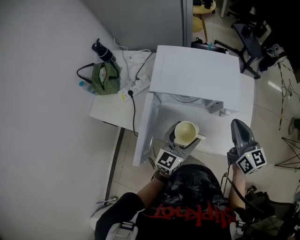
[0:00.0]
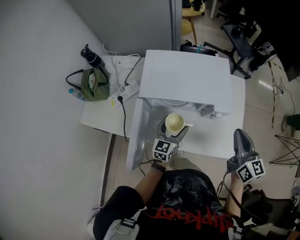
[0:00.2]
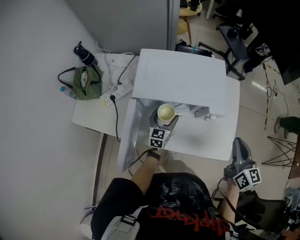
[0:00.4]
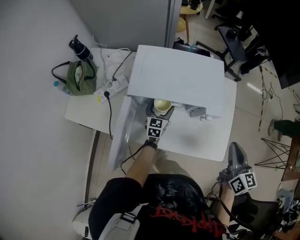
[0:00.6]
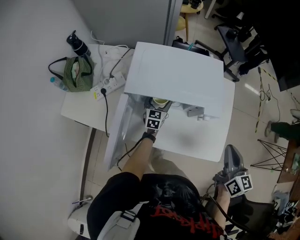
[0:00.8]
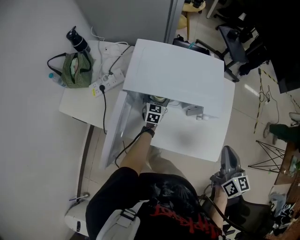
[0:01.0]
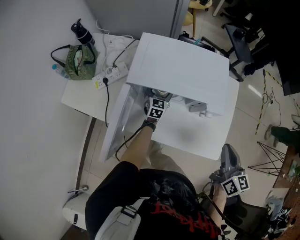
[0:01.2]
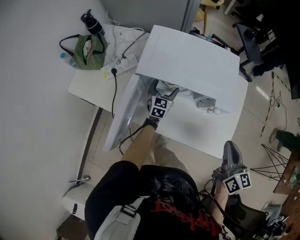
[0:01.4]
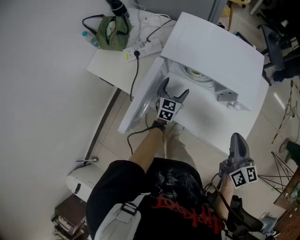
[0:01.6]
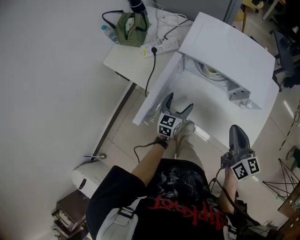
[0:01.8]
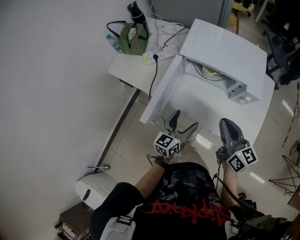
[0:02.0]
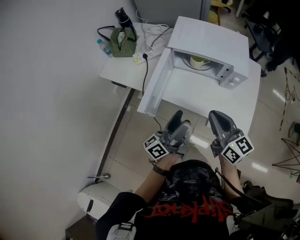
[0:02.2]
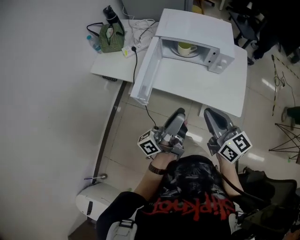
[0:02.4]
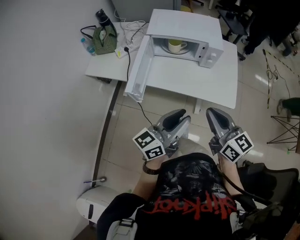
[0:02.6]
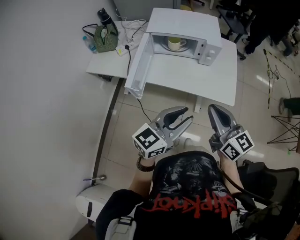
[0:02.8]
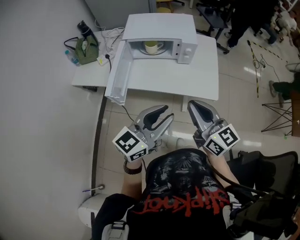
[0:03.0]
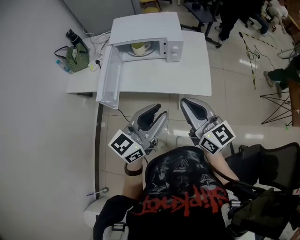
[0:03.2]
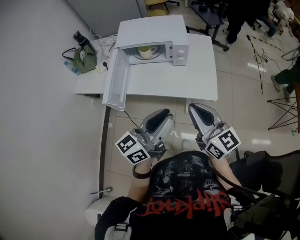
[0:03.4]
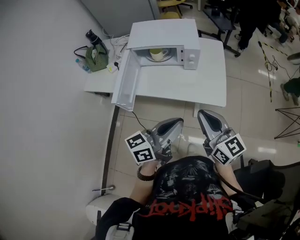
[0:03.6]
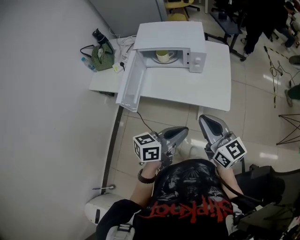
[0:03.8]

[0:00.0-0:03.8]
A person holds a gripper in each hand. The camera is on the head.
0:00.0 to 0:01.2: The right gripper shifts approximately 10 cm to the right and backward; the left gripper shifts some 30 cm forward and downward, and turns by some 20 degrees.
0:01.2 to 0:02.6: The left gripper shifts about 60 cm backward and upward, points its fingers about 40 degrees further upward, and closes up, while the right gripper shifts some 30 cm backward and to the left, and rotates some 20 degrees.
0:02.6 to 0:03.8: Both grippers move to the right, about 10 cm. The left gripper changes its angle by about 30 degrees.

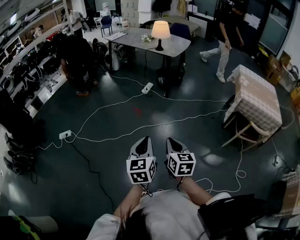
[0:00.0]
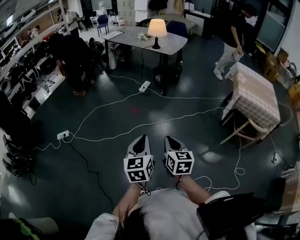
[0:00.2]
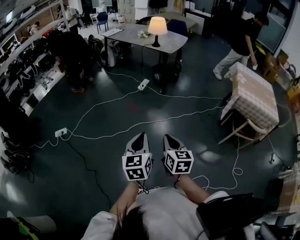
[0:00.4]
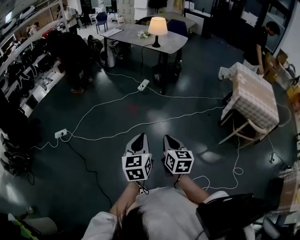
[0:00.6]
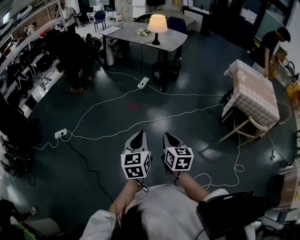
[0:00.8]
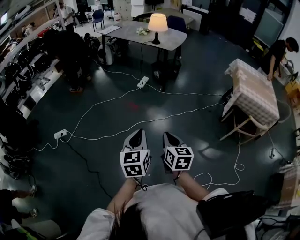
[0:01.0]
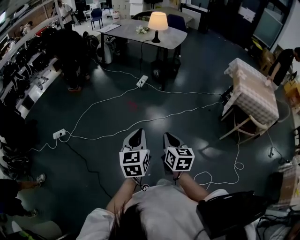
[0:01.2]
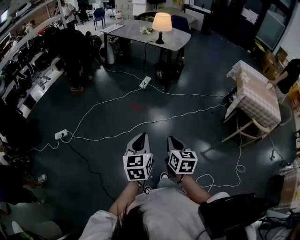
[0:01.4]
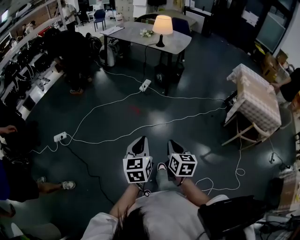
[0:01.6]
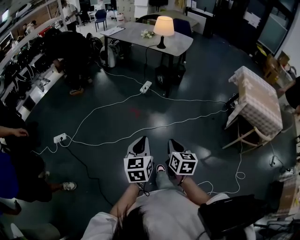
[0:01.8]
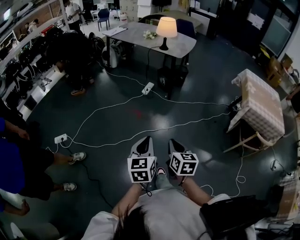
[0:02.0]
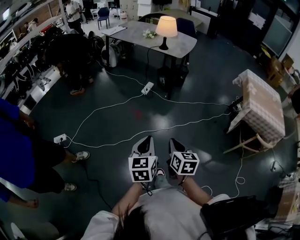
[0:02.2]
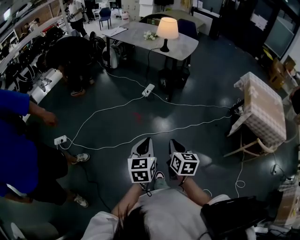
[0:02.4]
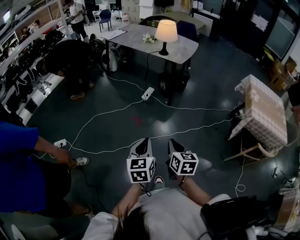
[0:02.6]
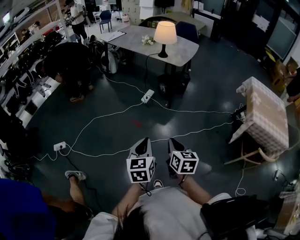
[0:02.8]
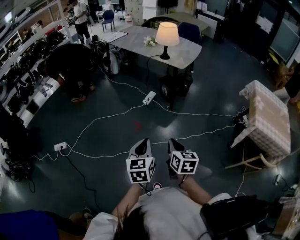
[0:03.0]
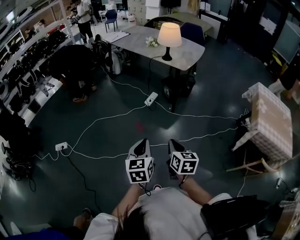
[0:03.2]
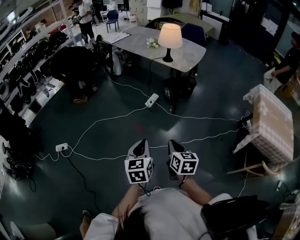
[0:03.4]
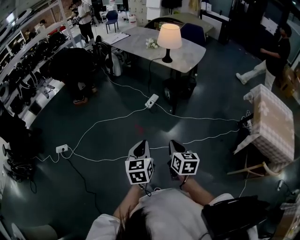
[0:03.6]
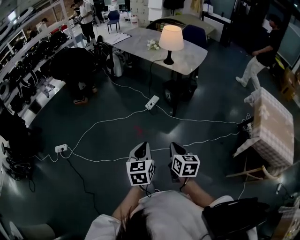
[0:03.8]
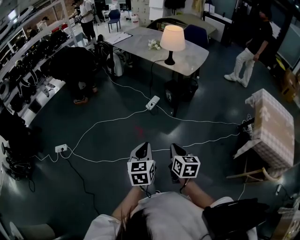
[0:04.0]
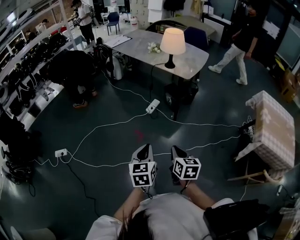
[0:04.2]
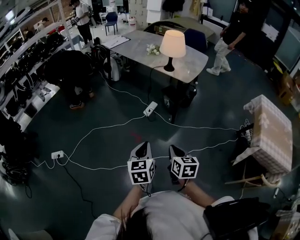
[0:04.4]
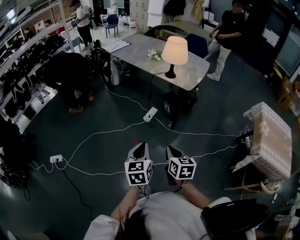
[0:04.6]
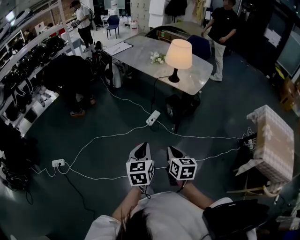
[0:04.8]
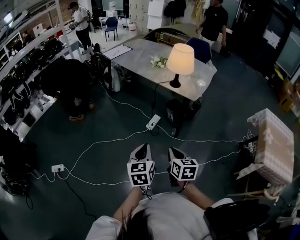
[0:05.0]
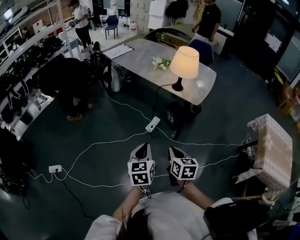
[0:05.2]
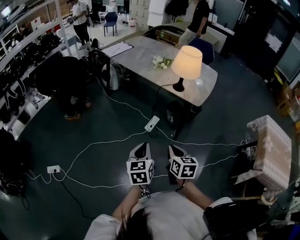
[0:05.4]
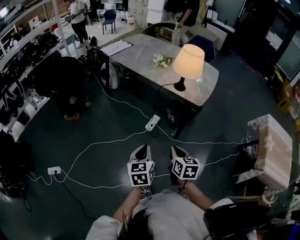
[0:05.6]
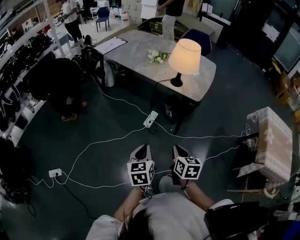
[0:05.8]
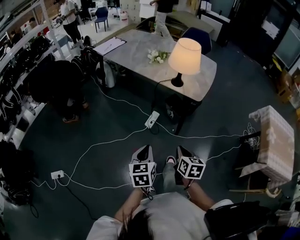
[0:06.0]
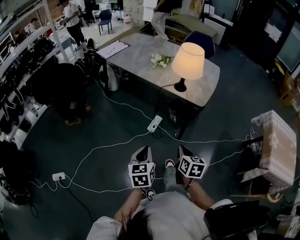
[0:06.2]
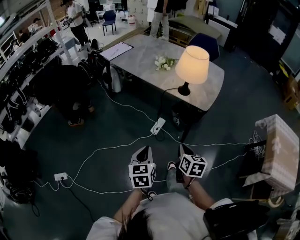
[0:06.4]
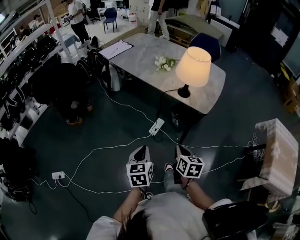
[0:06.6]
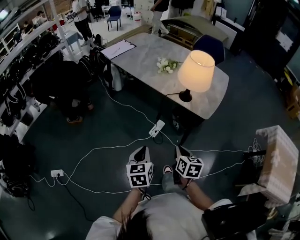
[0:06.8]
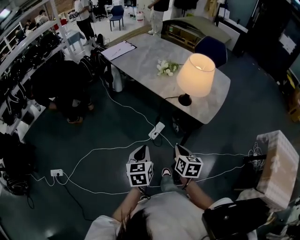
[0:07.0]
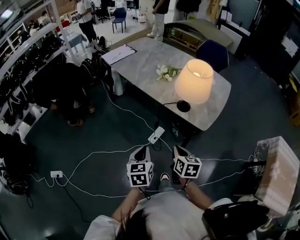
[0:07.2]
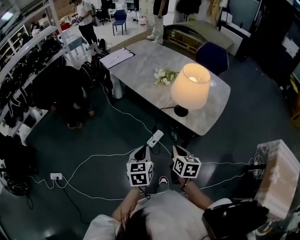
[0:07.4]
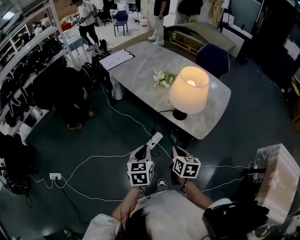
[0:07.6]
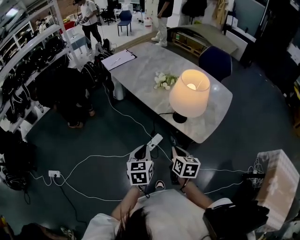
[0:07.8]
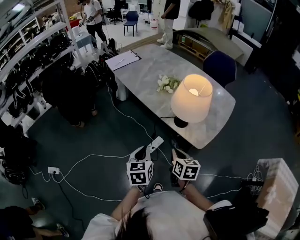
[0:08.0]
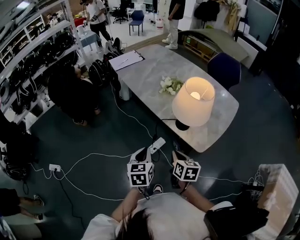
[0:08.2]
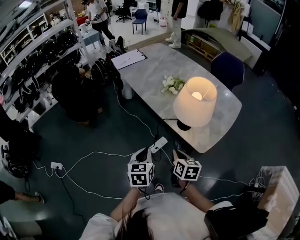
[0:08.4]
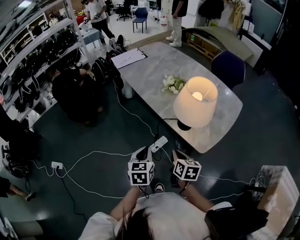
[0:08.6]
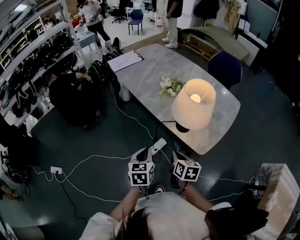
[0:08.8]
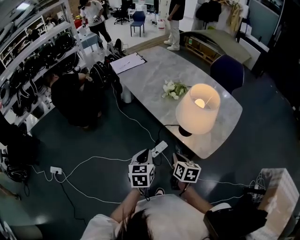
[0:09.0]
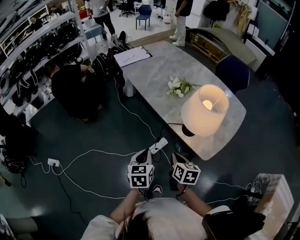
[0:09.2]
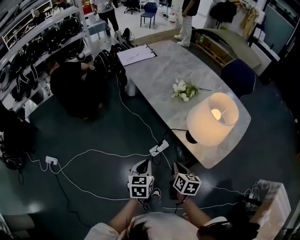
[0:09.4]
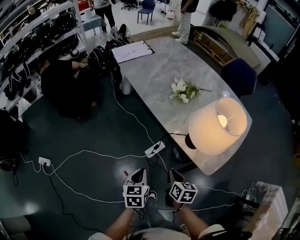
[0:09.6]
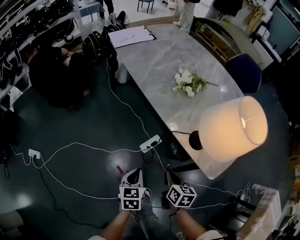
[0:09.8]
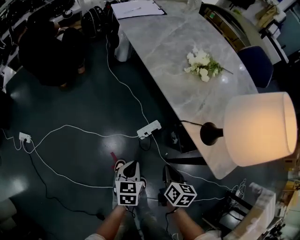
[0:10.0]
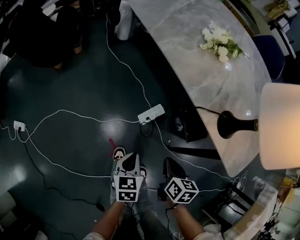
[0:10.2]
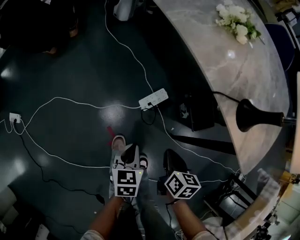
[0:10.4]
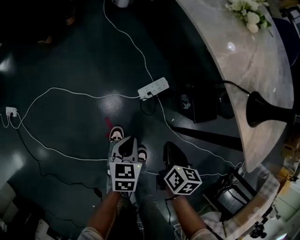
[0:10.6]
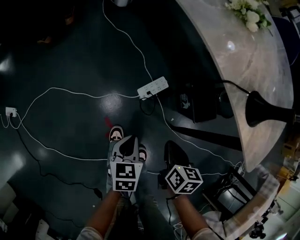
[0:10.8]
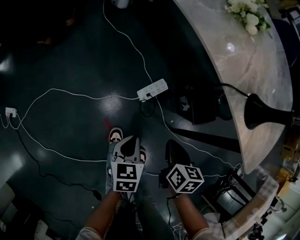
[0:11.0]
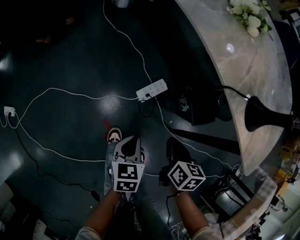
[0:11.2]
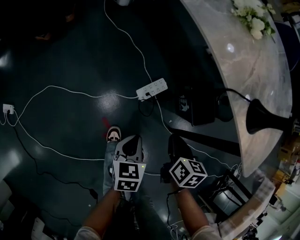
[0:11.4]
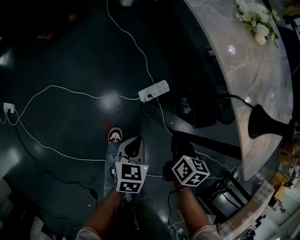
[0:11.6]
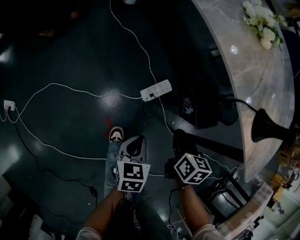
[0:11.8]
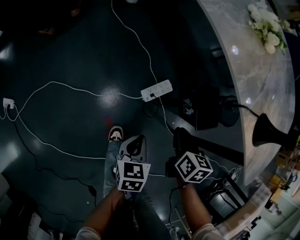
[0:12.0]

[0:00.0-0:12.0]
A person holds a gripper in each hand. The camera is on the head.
0:00.0 to 0:01.6: The left gripper is displaced to the left and forward by approximately 10 cm; the right gripper goes some 10 cm forward and to the left.
0:01.6 to 0:03.0: The grippers both shift forward by approximately 25 cm.
0:03.0 to 0:04.4: Both grippers move forward, approximately 15 cm.
0:04.4 to 0:06.0: Both grippers move forward, some 25 cm.
0:06.0 to 0:07.6: Both grippers travel together forward, roughly 25 cm.
0:07.6 to 0:09.0: Both grippers travel together forward, approximately 5 cm.
0:09.0 to 0:10.4: Both grippers move downward, roughly 35 cm.
0:10.4 to 0:12.0: The left gripper changes place by some 5 cm. The right gripper moves forward, roughly 10 cm.

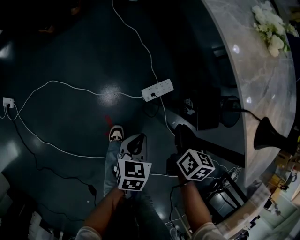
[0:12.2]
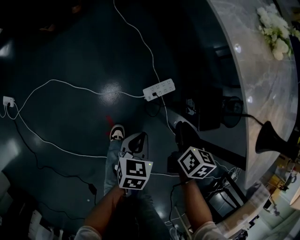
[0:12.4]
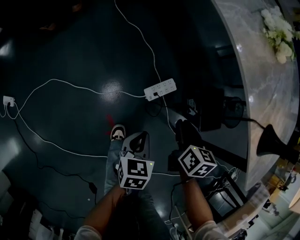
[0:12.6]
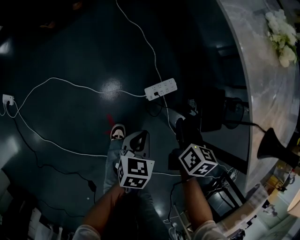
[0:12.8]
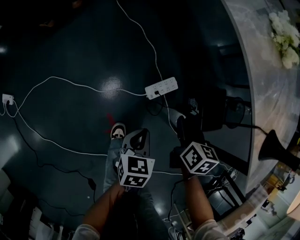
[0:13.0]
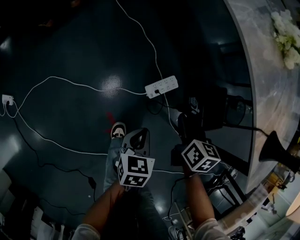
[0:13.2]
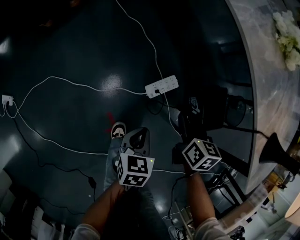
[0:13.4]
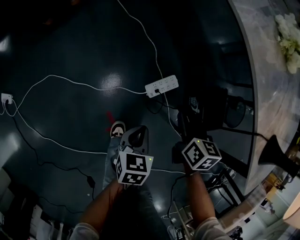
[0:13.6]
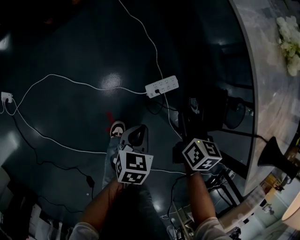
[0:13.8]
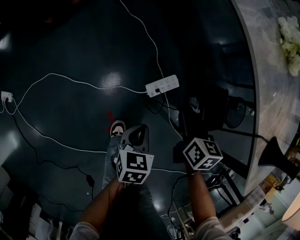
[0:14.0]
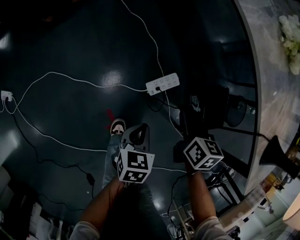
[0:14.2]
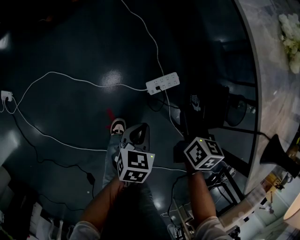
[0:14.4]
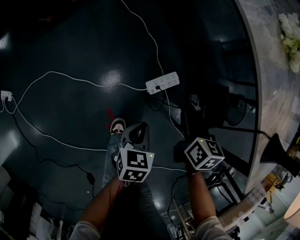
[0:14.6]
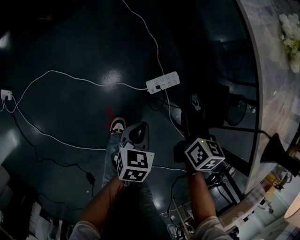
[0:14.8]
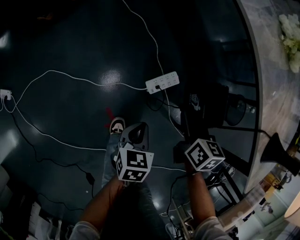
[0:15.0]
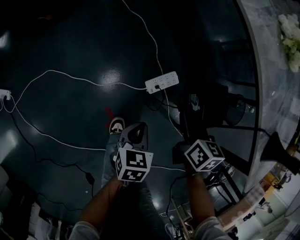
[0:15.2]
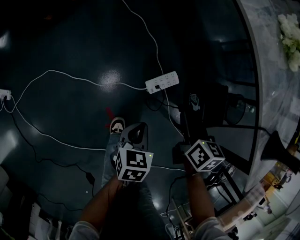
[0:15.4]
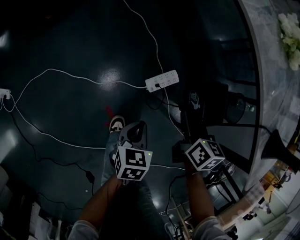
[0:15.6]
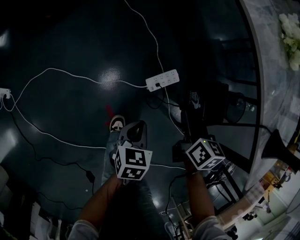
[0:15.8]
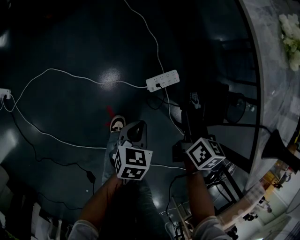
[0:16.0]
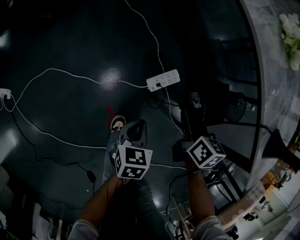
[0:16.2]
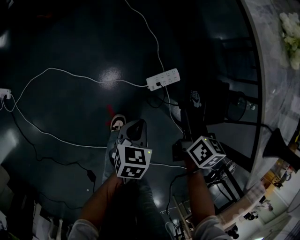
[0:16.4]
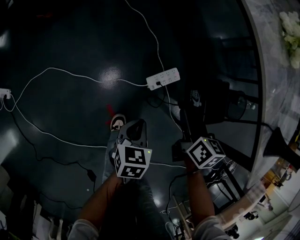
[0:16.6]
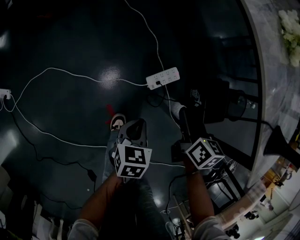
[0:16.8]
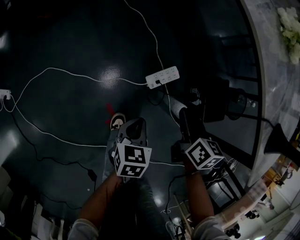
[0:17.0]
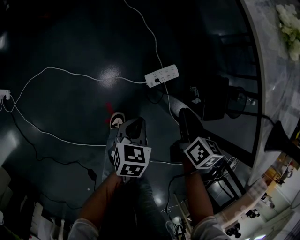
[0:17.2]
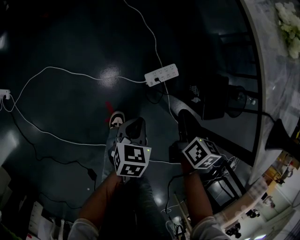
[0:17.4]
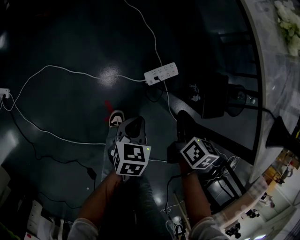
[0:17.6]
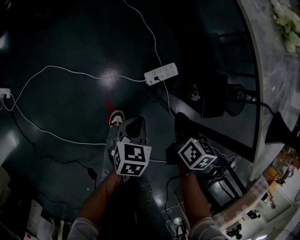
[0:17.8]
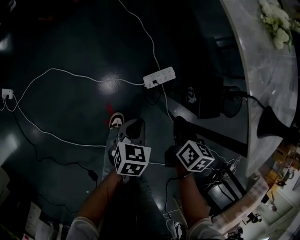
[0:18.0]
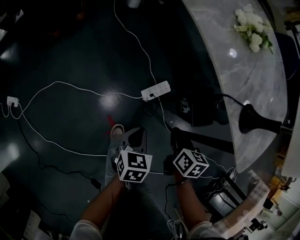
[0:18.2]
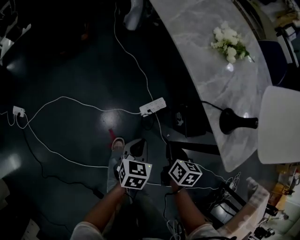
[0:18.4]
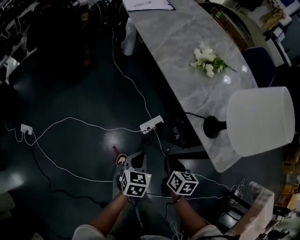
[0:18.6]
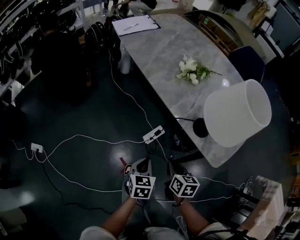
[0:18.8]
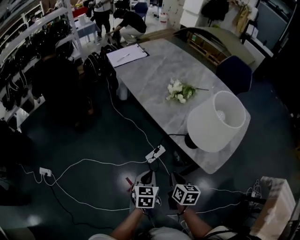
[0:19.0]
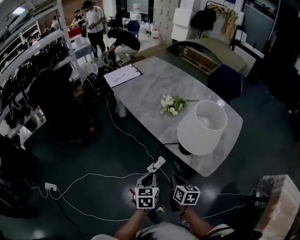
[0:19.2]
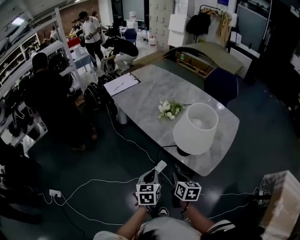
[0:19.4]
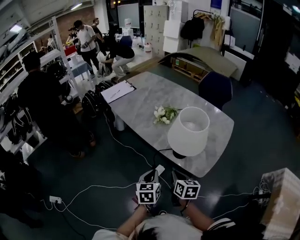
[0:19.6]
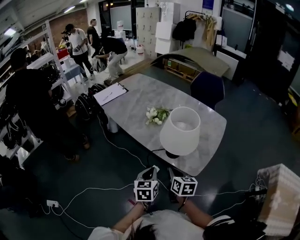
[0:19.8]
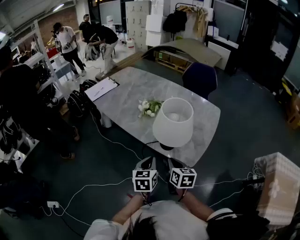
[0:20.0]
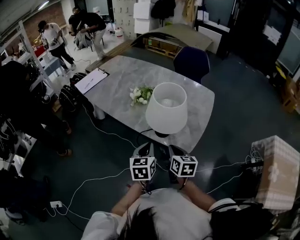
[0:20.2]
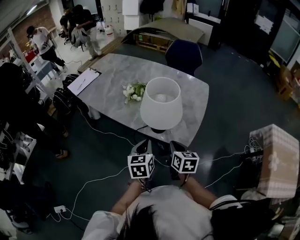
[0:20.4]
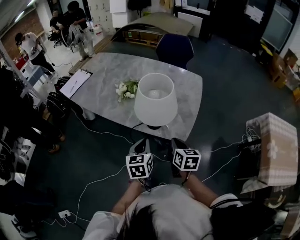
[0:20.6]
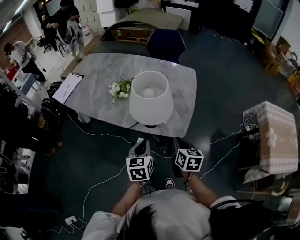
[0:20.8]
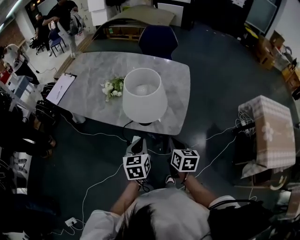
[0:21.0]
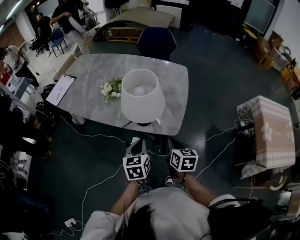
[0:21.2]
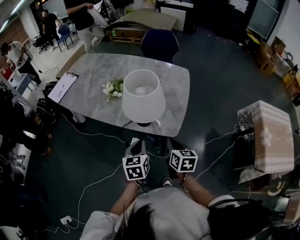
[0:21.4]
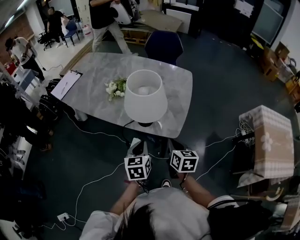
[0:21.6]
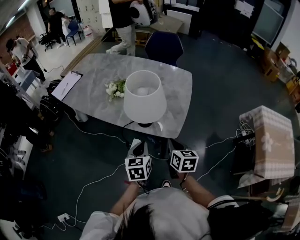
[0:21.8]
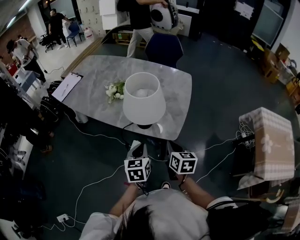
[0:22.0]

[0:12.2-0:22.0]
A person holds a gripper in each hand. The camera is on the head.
0:12.2 to 0:13.6: The left gripper changes place by some 5 cm; the right gripper is displaced forward by roughly 5 cm.
0:13.6 to 0:15.0: Both grippers stay about where they are.
0:15.0 to 0:16.4: The grippers stay close to where they were, moving slightly.
0:16.4 to 0:17.8: The right gripper heads backward, covering roughly 5 cm.
0:17.8 to 0:19.2: Both grippers move upward, some 35 cm. The left gripper turns by some 20 degrees.
0:19.2 to 0:20.6: The right gripper travels to the right and upward by about 15 cm, and swivels about 20 degrees; the left gripper heads to the right, upward and forward, covering approximately 15 cm, and changes its angle by about 20 degrees.
0:20.6 to 0:22.0: The left gripper shifts by approximately 5 cm.